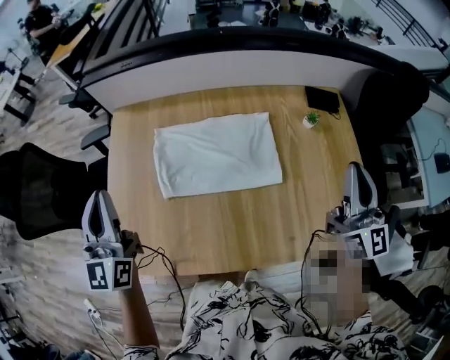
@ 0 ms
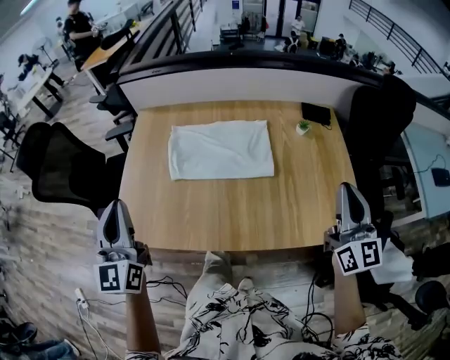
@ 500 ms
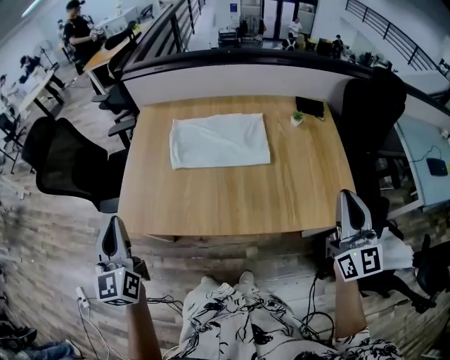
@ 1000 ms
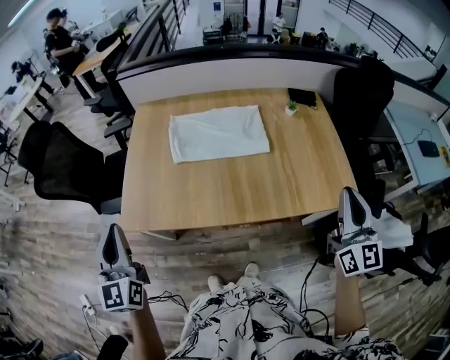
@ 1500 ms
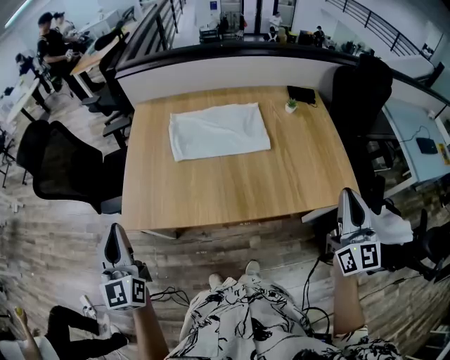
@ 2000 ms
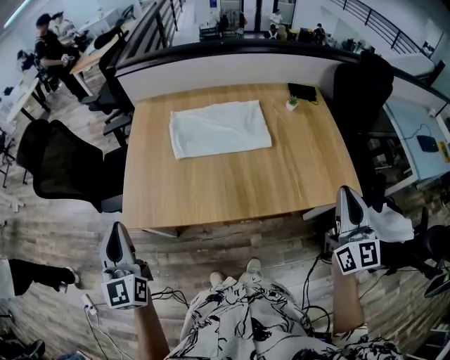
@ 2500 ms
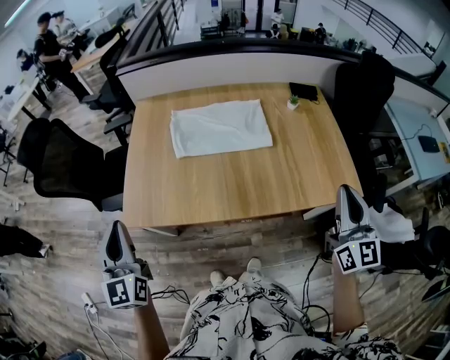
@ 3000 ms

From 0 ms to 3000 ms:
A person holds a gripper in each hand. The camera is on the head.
From 0 ms to 1500 ms: Both grippers move backward, some 35 cm.
From 1500 ms to 3000 ms: The grippers move only a little.

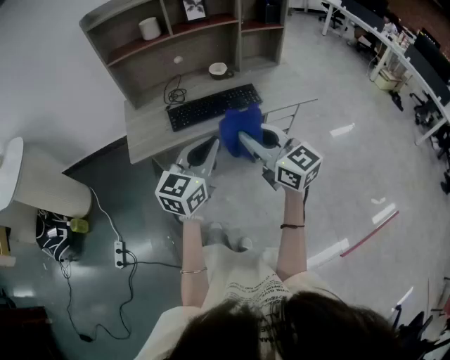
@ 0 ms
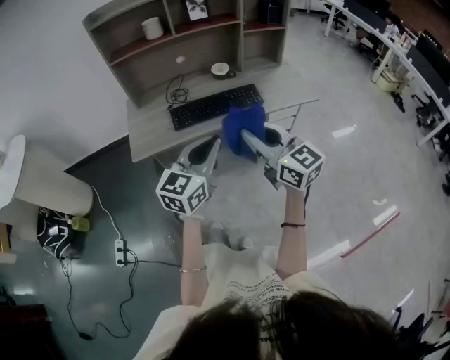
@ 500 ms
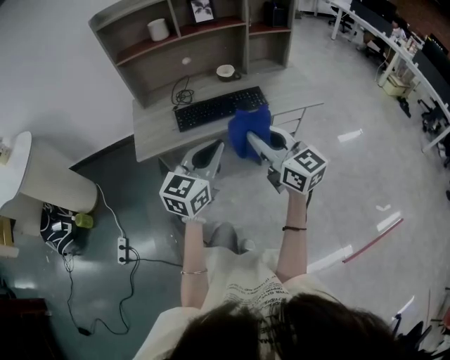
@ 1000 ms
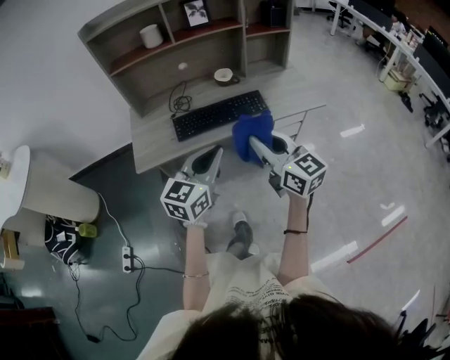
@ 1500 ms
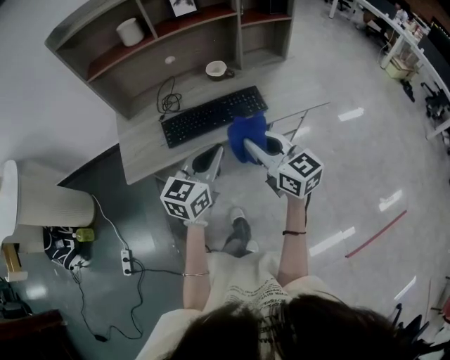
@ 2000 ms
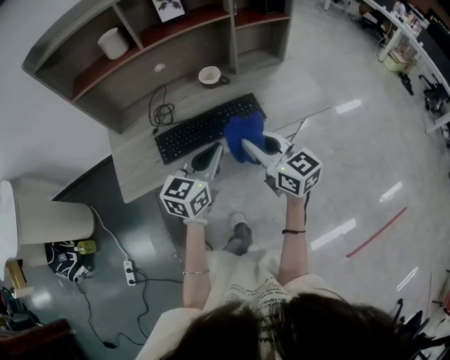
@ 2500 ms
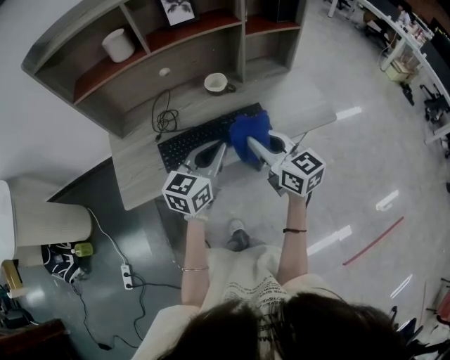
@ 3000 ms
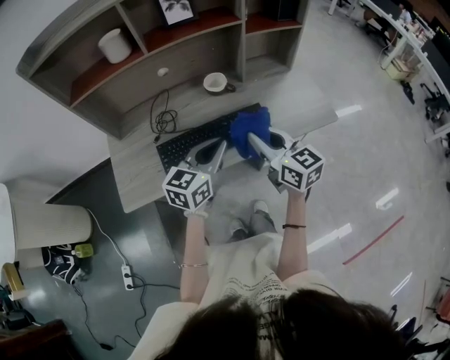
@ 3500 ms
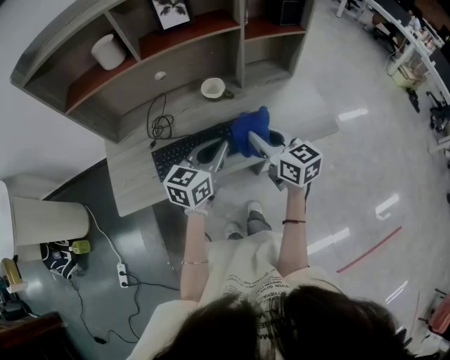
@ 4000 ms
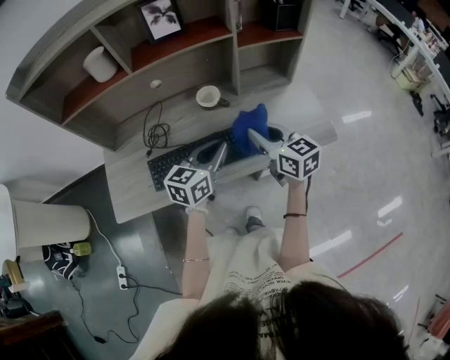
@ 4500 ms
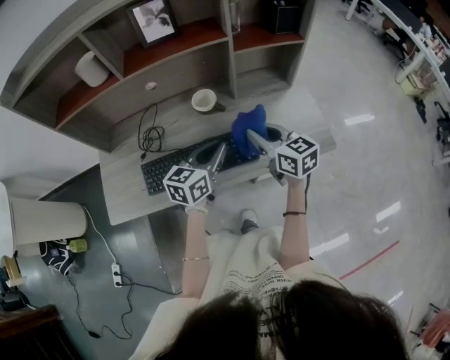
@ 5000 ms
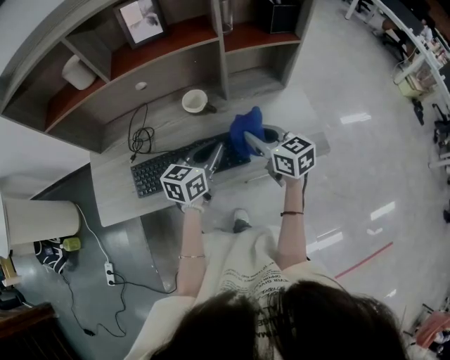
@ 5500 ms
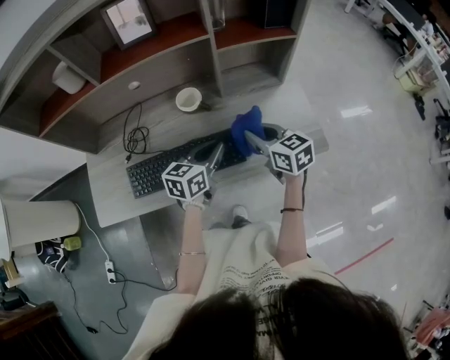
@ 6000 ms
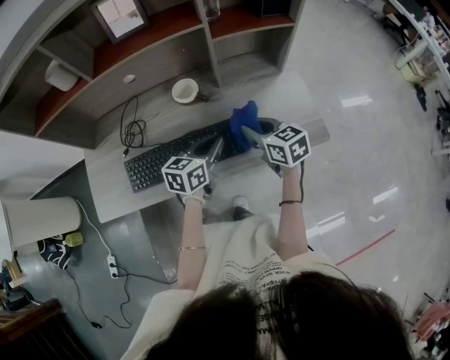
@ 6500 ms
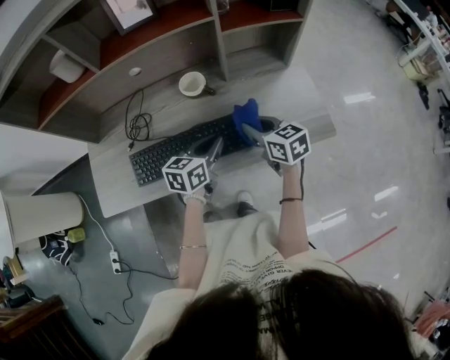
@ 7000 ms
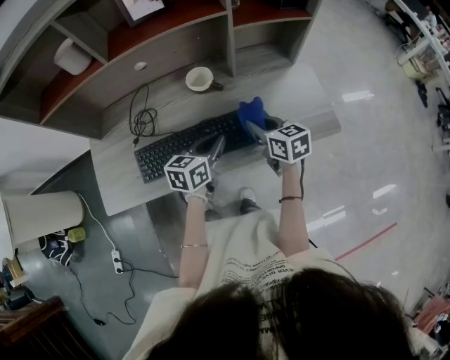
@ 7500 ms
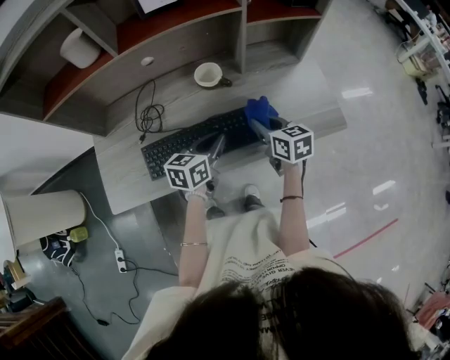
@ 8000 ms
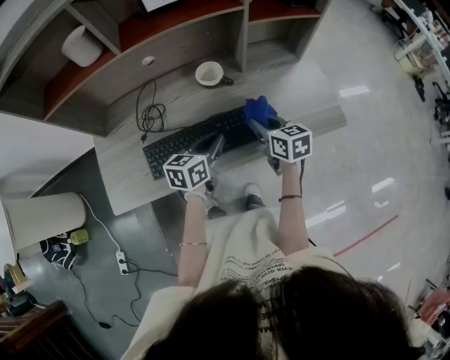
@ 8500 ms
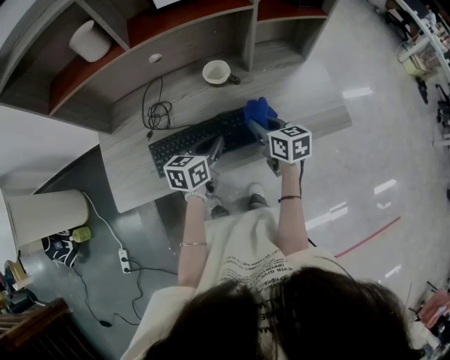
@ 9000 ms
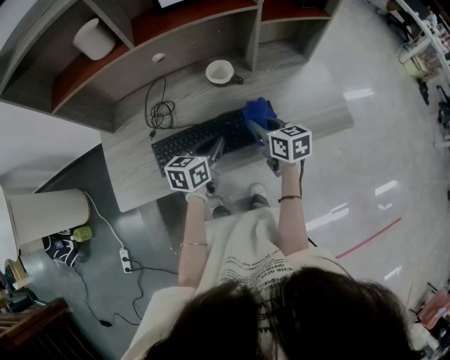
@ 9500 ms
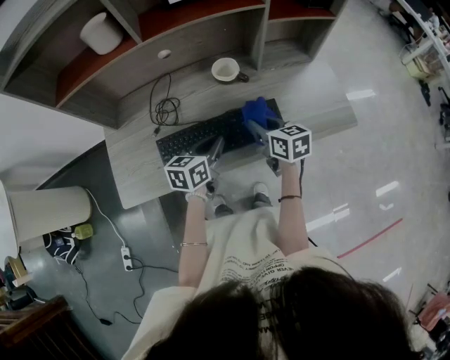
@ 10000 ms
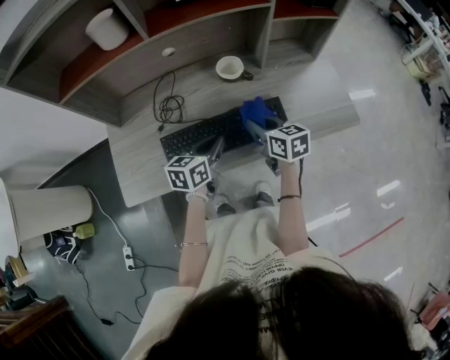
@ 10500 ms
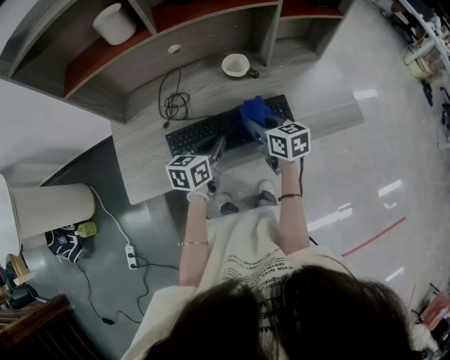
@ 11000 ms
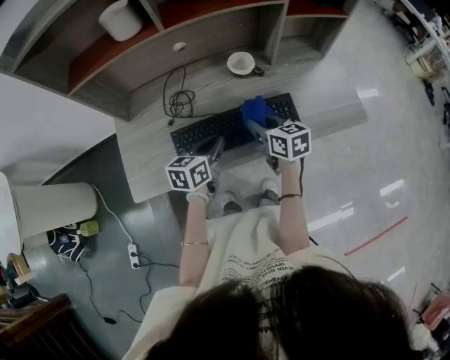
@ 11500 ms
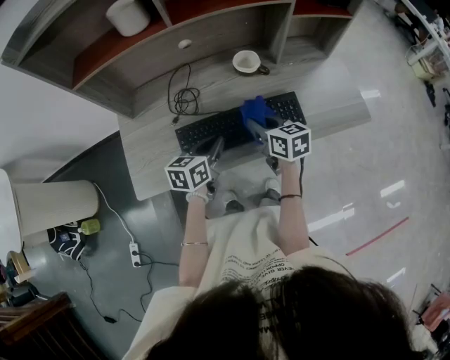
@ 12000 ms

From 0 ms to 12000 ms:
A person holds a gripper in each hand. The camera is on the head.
From 0 ms to 2000 ms: Both grippers travel together forward and downward, about 15 cm.
From 2000 ms to 4000 ms: The grippers both shift forward by roughly 20 cm.
From 4000 ms to 6000 ms: The two grippers go about 15 cm forward, to the right and downward.
From 6000 ms to 8000 ms: The right gripper travels to the left and downward by approximately 10 cm, while the left gripper shifts about 10 cm to the left.
From 8000 ms to 10000 ms: The two grippers go about 5 cm to the left.
From 10000 ms to 12000 ms: Both grippers move to the left, roughly 10 cm.

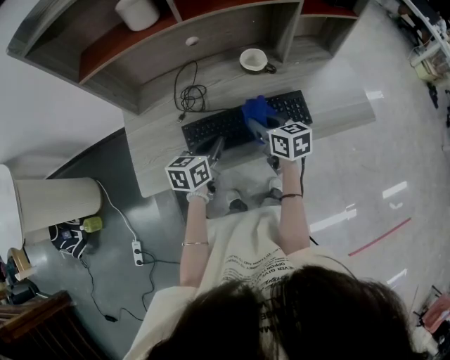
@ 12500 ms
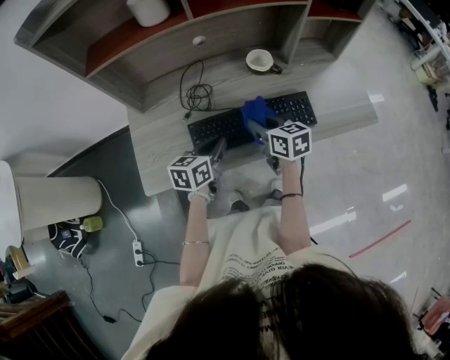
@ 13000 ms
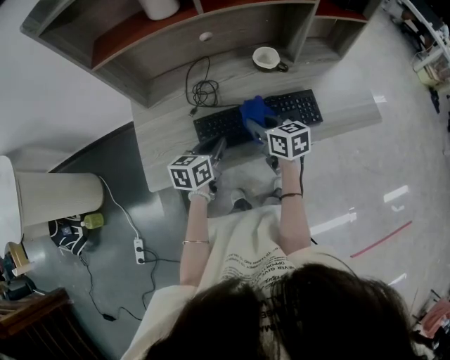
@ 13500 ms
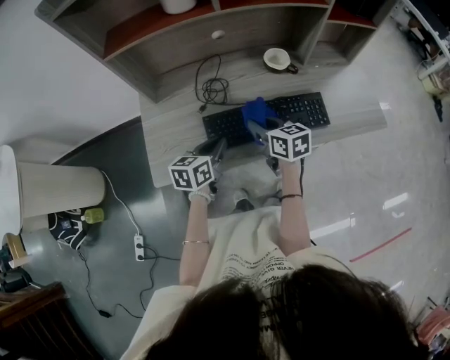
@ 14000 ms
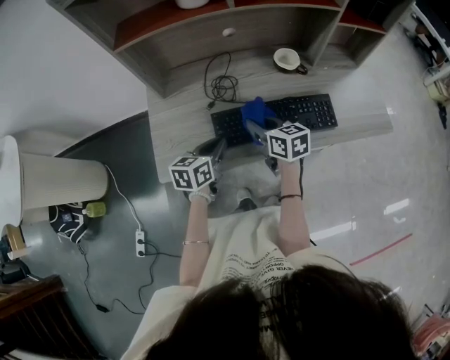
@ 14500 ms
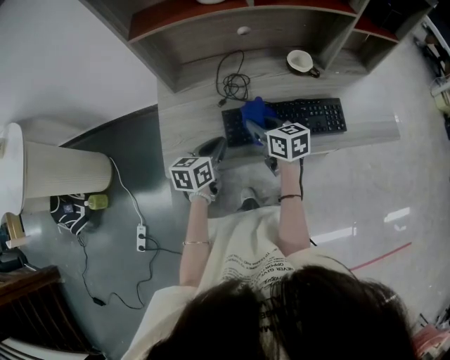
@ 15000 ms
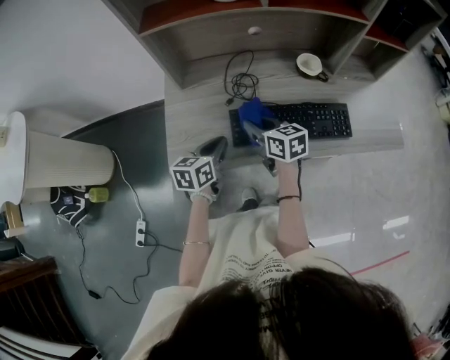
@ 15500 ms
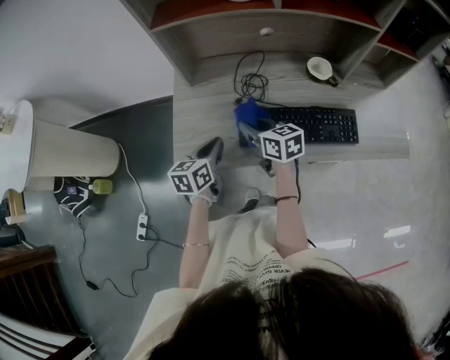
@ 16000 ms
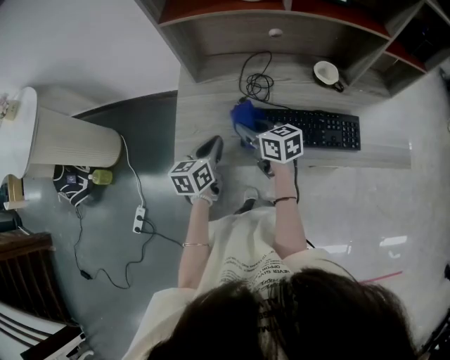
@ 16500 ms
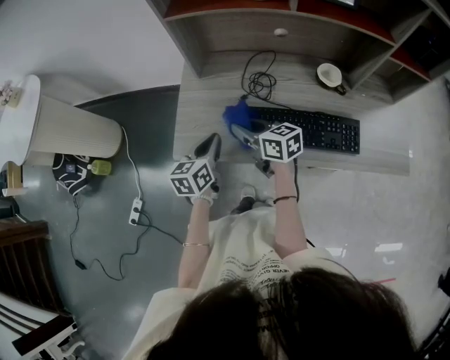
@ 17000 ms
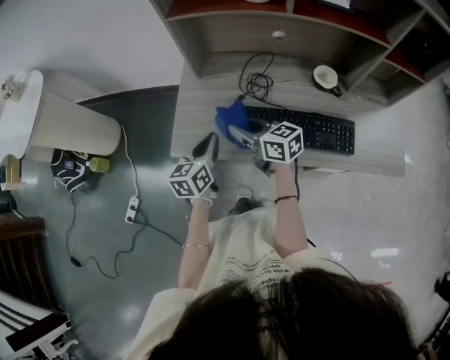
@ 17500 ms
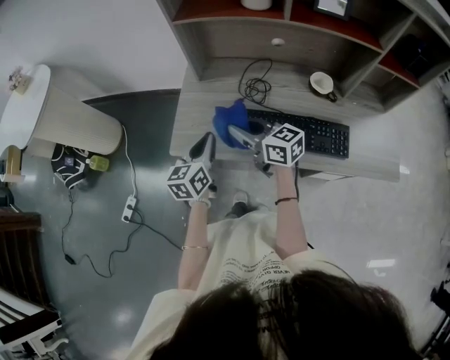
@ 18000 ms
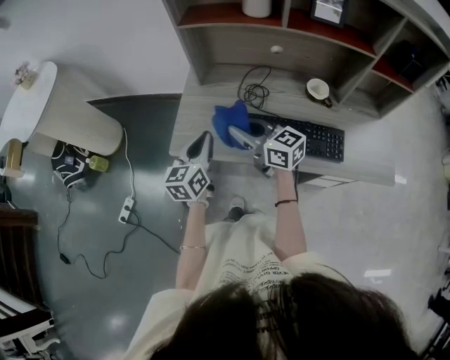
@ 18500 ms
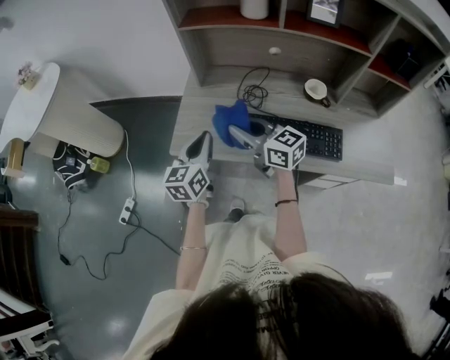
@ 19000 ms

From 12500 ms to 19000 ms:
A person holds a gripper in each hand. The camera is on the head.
From 12500 ms to 14500 ms: The two grippers go roughly 10 cm to the left.
From 14500 ms to 17000 ms: The left gripper shifts by roughly 10 cm, and changes its angle by approximately 30 degrees. Meanwhile the right gripper shifts by approximately 15 cm, and changes its angle by roughly 30 degrees.
From 17000 ms to 19000 ms: The right gripper is displaced upward and backward by roughly 15 cm, and rotates roughly 20 degrees. The left gripper heads upward, covering roughly 10 cm.

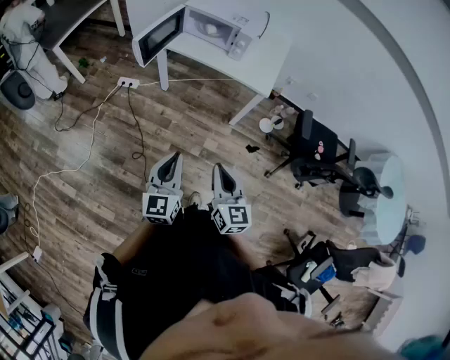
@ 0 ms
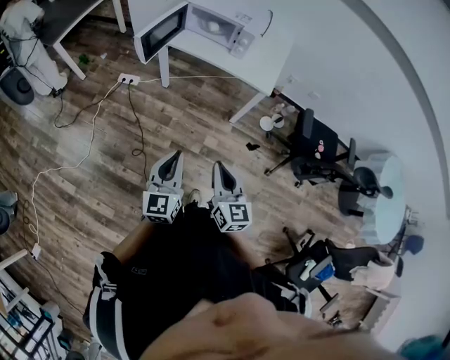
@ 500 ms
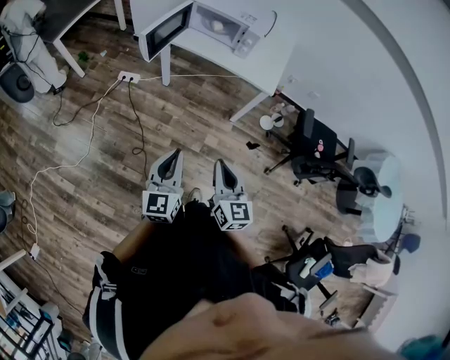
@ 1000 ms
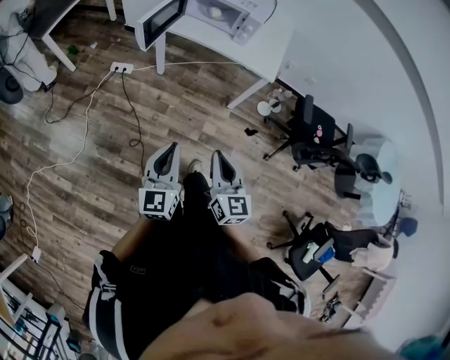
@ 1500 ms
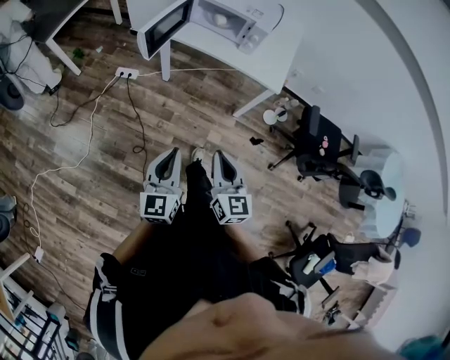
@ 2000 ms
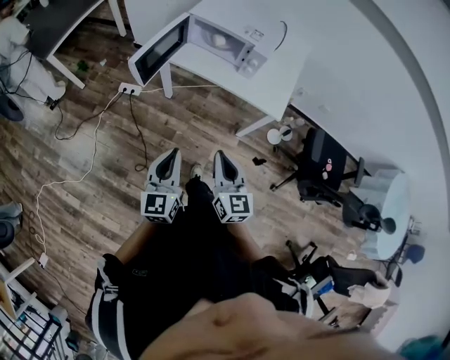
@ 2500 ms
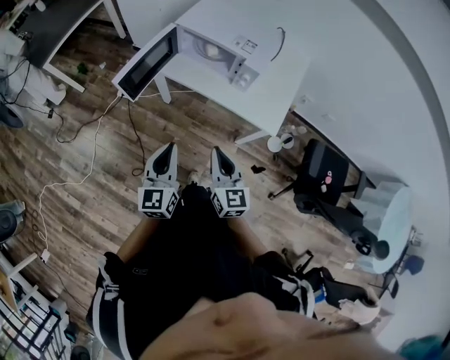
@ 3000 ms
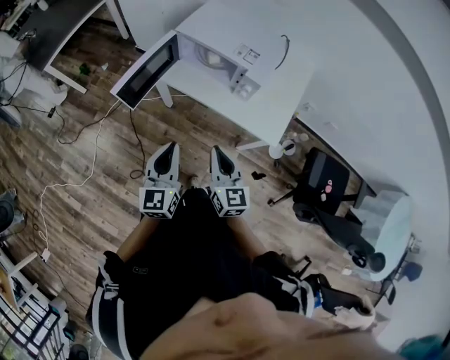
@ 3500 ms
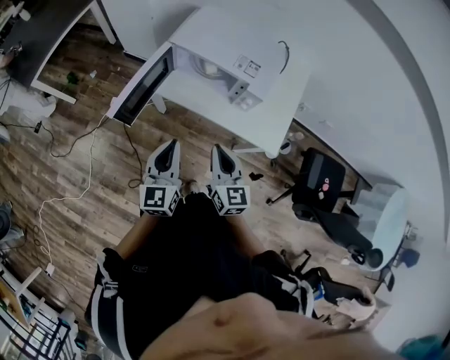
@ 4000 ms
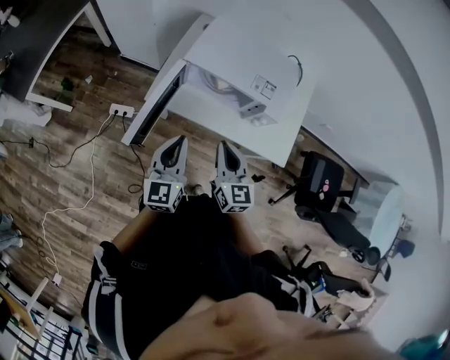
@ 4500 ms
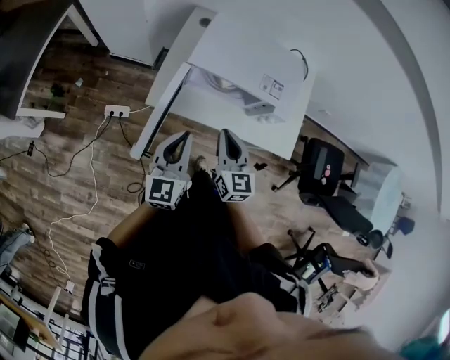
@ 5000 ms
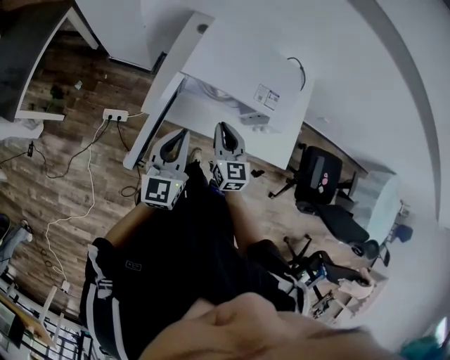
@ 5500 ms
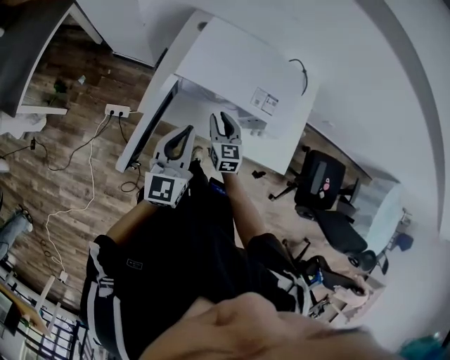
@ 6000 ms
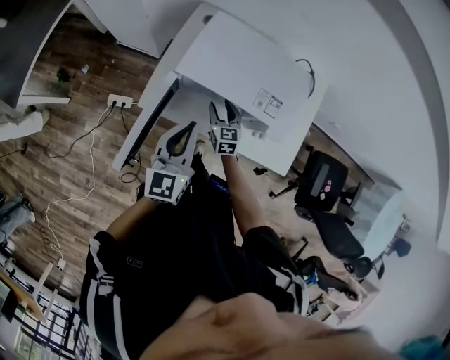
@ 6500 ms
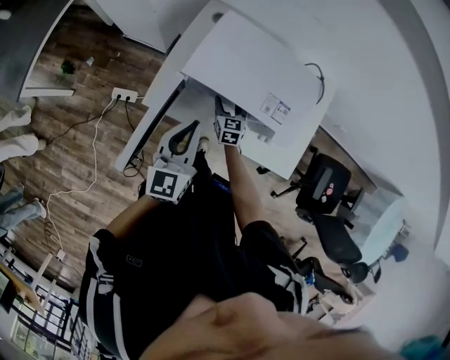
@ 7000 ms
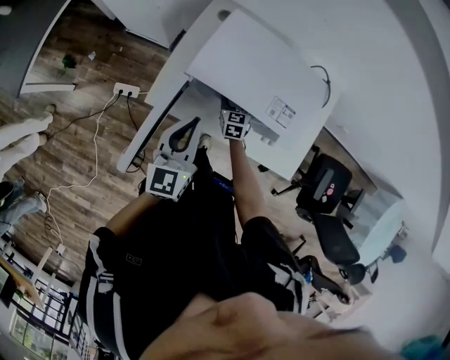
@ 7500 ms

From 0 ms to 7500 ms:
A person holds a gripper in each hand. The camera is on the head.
From 0 ms to 2000 ms: The left gripper heads to the left, covering about 5 cm. The right gripper is displaced forward and to the left by about 10 cm.
From 2000 ms to 4000 ms: Both grippers travel together forward, roughly 40 cm.
From 4000 ms to 5500 ms: The grippers both shift forward and to the left by roughly 20 cm.
From 5500 ms to 7500 ms: The right gripper shifts approximately 25 cm downward and forward, rotates roughly 20 degrees, and opens up. The left gripper heads forward, covering roughly 10 cm.
